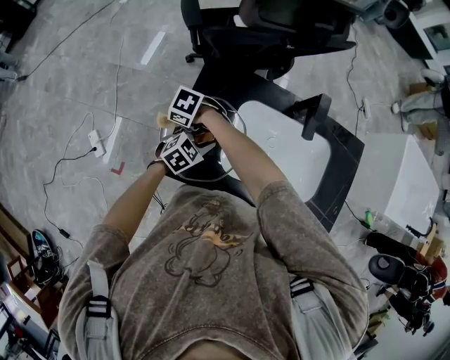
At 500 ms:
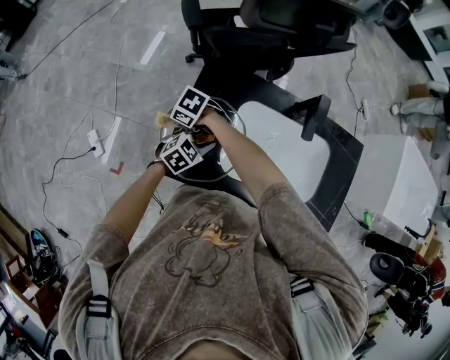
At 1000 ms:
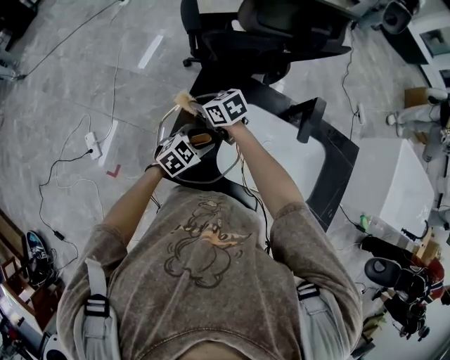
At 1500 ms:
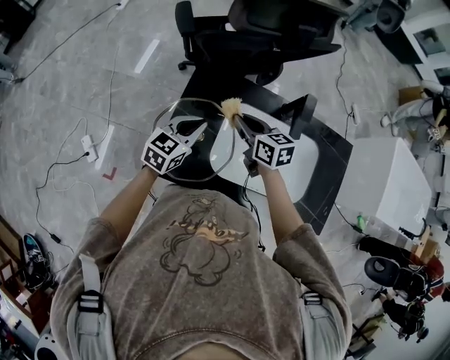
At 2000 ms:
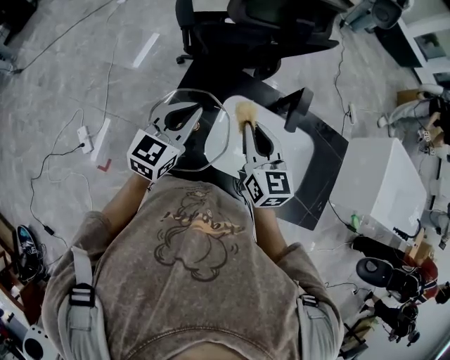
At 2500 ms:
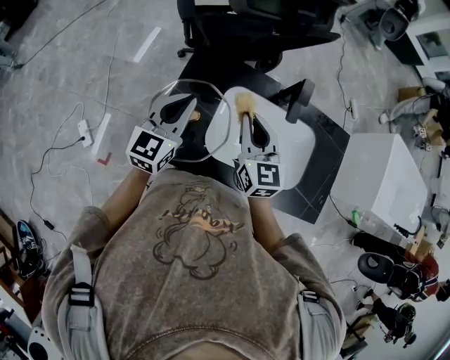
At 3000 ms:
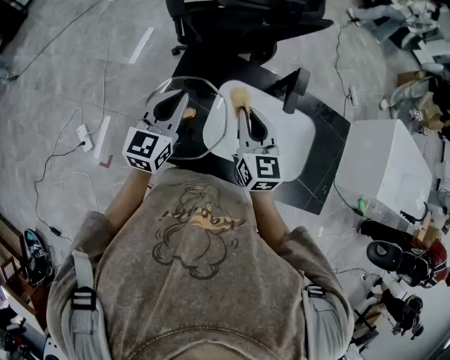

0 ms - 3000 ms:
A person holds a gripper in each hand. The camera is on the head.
0 ms - 1500 ms: The left gripper shifts roughly 10 cm upward, turns by about 30 degrees, and closes its fingers. Meanwhile the right gripper ends up about 25 cm from where it was, and turns by some 70 degrees.
1500 ms - 3000 ms: The right gripper goes roughly 10 cm upward and backward, and swivels approximately 30 degrees; the left gripper is displaced upward by roughly 10 cm, and swivels approximately 20 degrees.

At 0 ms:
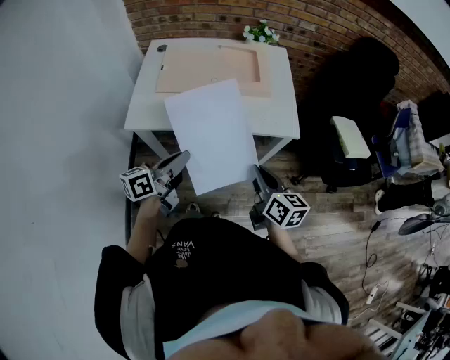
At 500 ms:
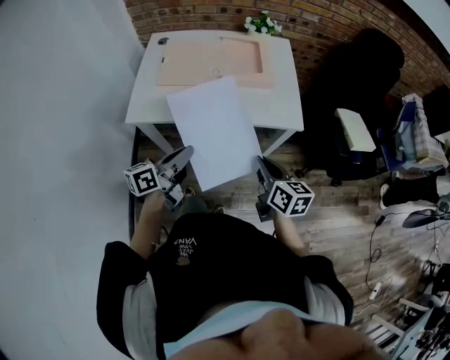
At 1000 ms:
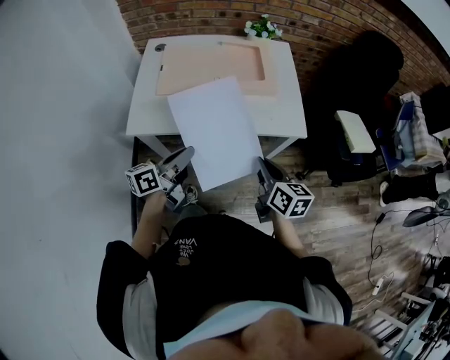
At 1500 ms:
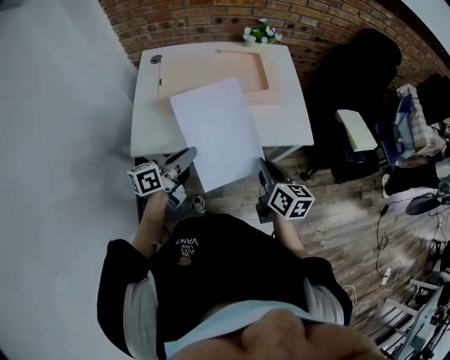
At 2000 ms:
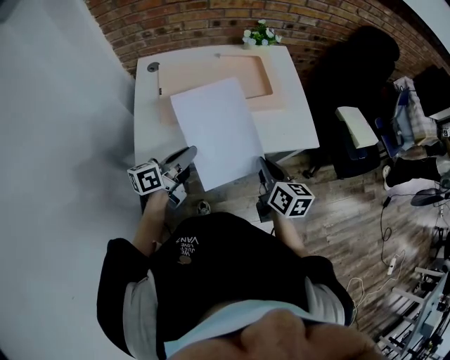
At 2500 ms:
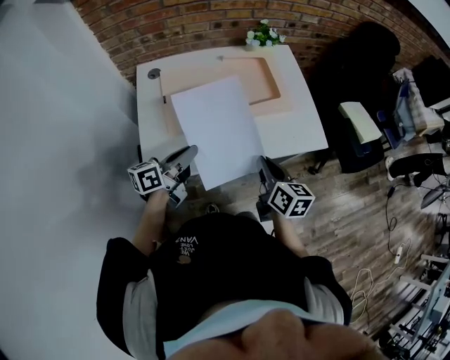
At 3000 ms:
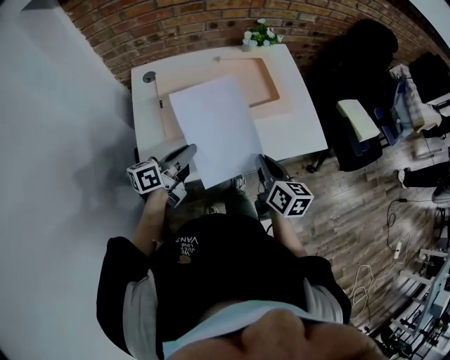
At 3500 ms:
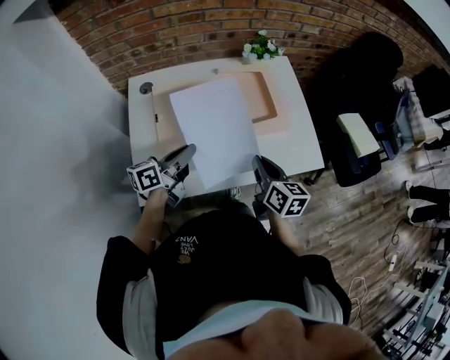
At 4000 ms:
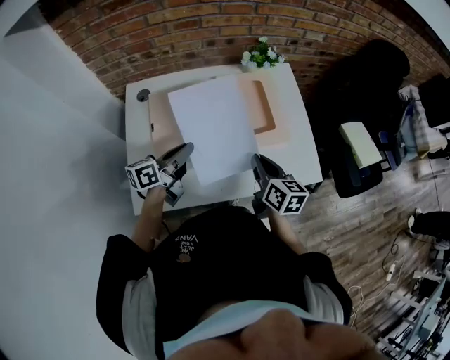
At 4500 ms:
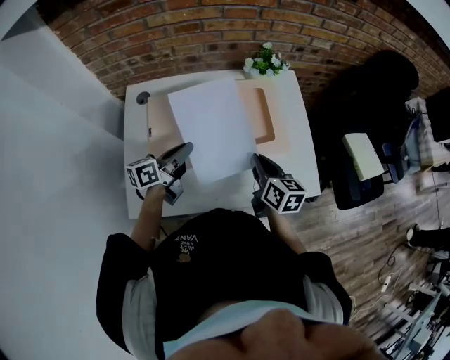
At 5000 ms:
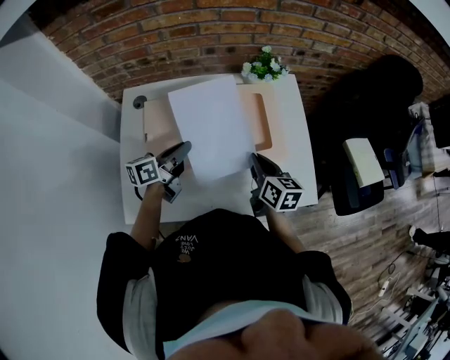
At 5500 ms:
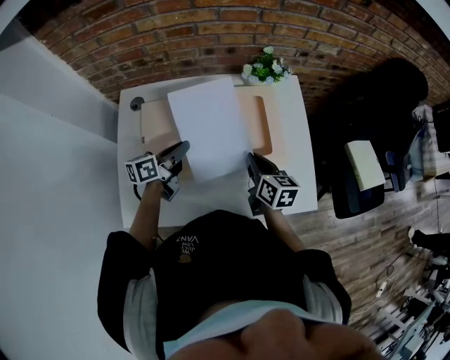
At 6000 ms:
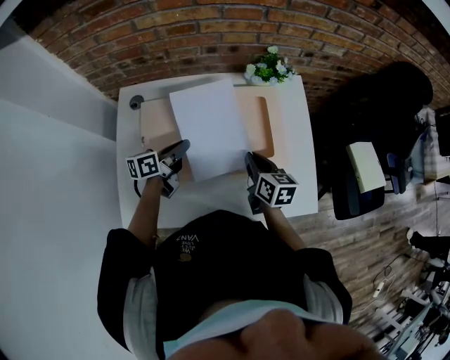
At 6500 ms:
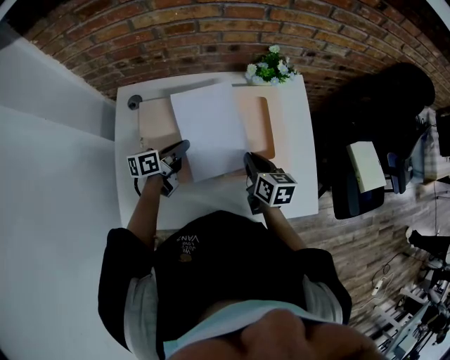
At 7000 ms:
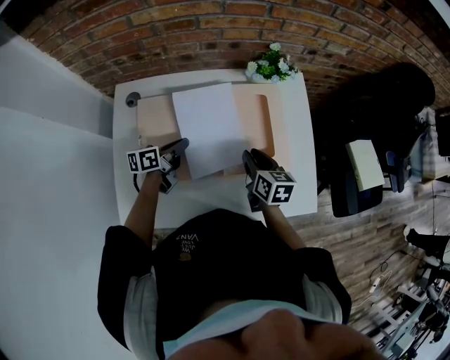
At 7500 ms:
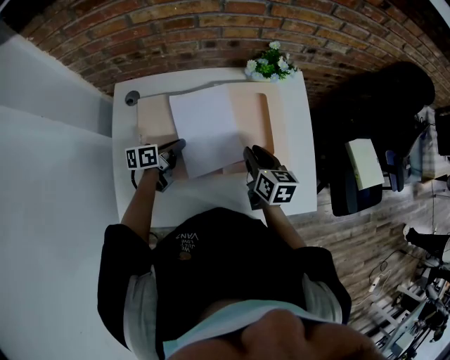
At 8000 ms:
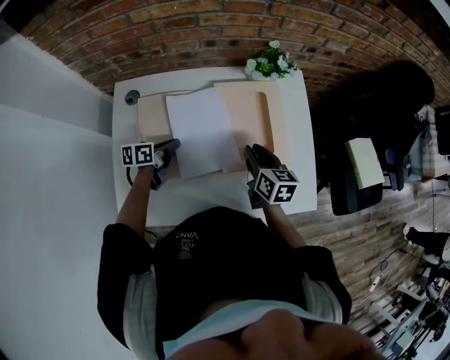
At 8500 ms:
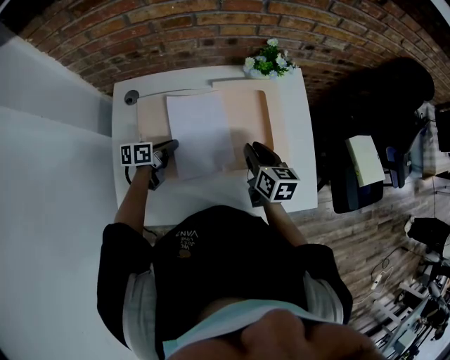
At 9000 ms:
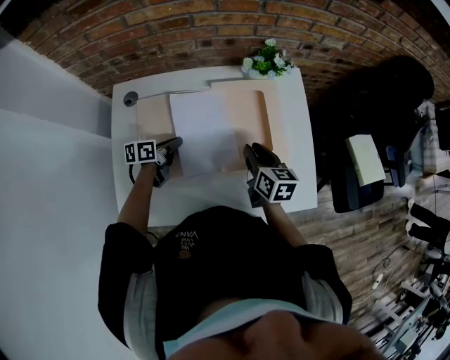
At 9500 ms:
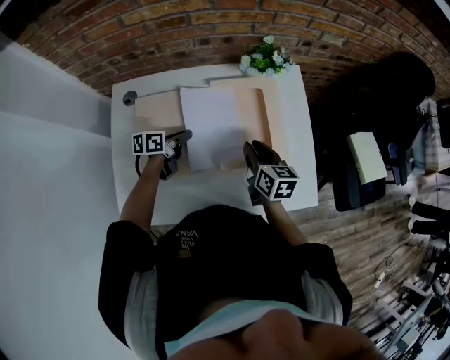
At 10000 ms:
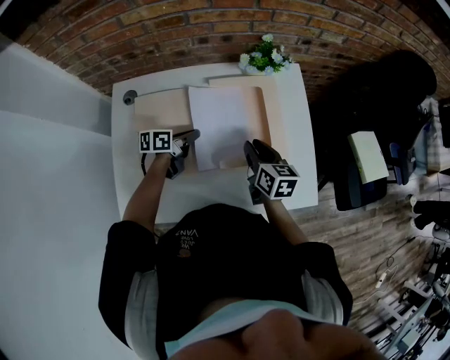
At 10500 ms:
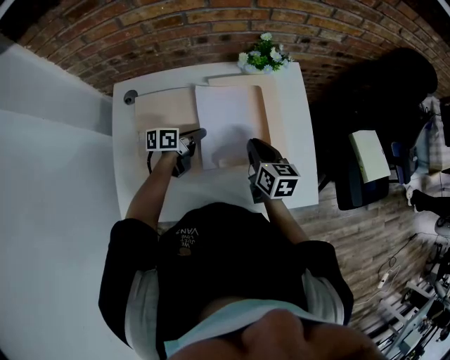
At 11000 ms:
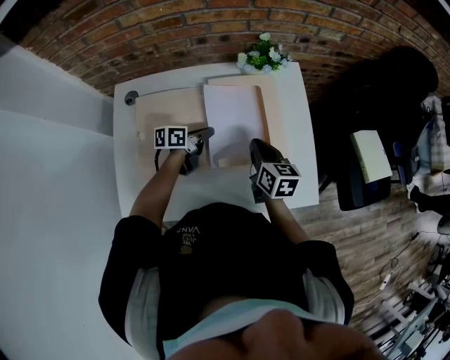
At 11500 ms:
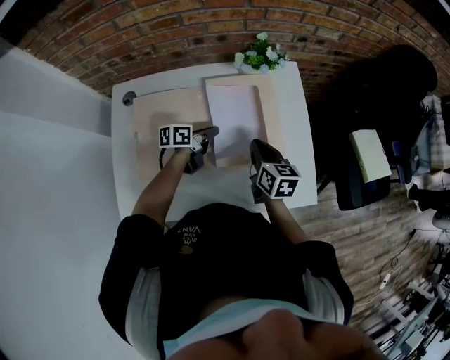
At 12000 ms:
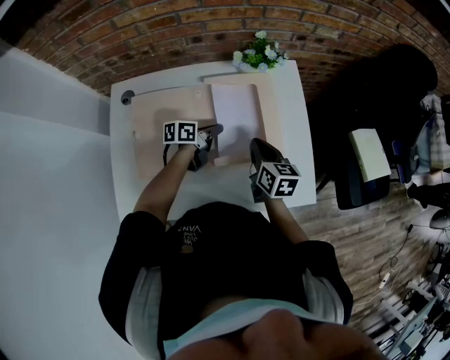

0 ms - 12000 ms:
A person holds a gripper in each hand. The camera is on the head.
0 ms - 2000 ms: Both grippers travel together forward and to the left, approximately 15 cm.
2000 ms - 4000 ms: Both grippers move forward, approximately 15 cm.
4000 ms - 6000 ms: Both grippers move forward and downward, some 15 cm.
6000 ms - 8000 ms: The left gripper is displaced downward by some 5 cm. The right gripper opens its fingers.
8000 ms - 10000 ms: The left gripper is displaced to the right by about 10 cm.
10000 ms - 12000 ms: The left gripper moves to the right, about 10 cm; the right gripper closes.

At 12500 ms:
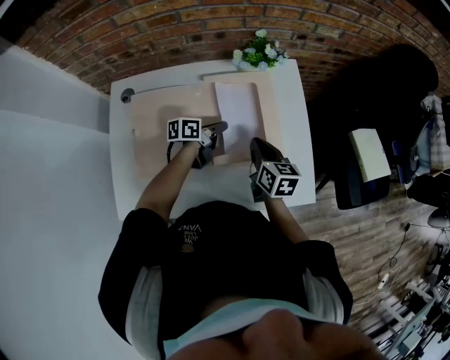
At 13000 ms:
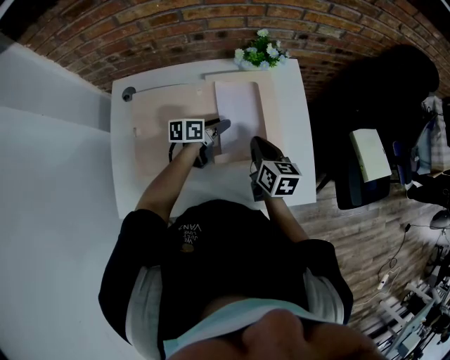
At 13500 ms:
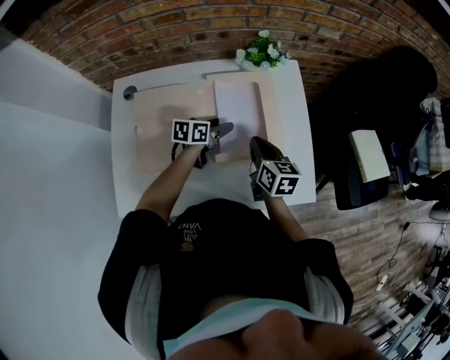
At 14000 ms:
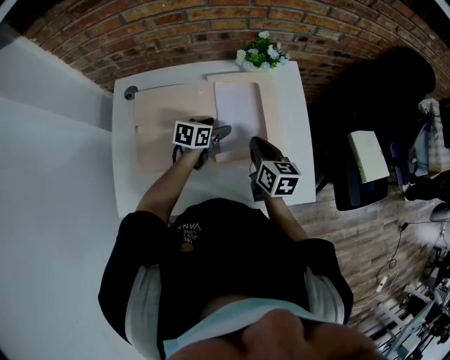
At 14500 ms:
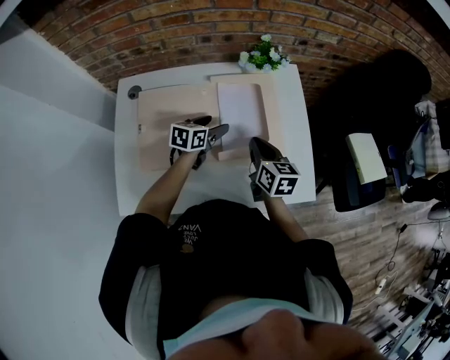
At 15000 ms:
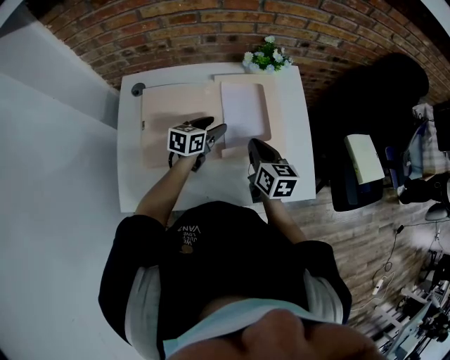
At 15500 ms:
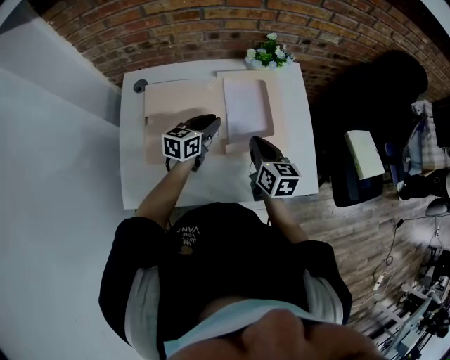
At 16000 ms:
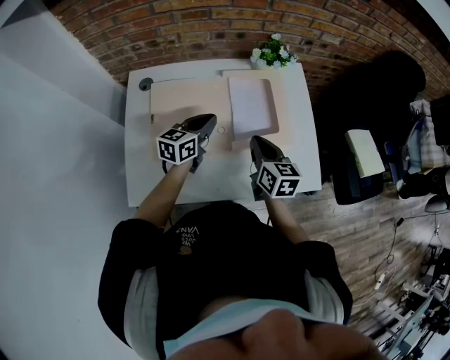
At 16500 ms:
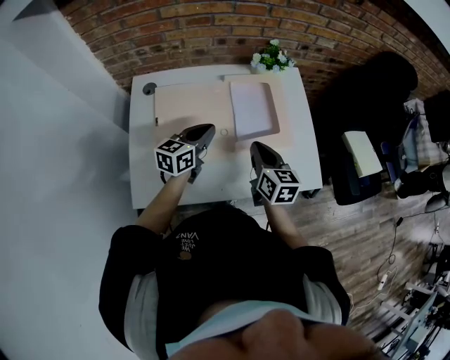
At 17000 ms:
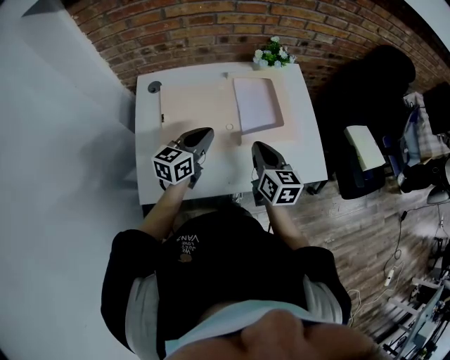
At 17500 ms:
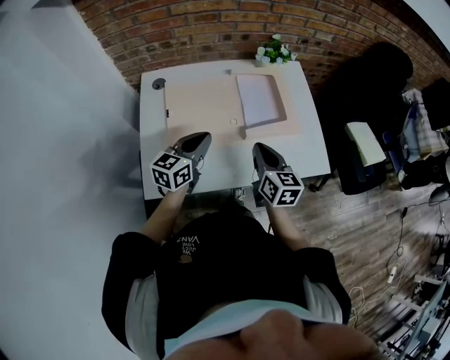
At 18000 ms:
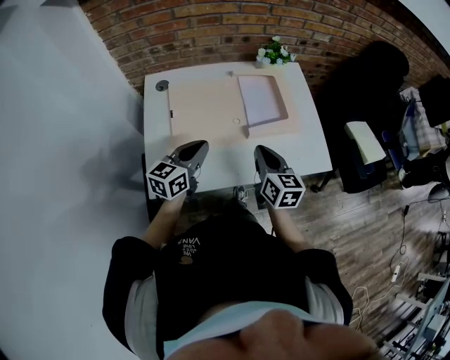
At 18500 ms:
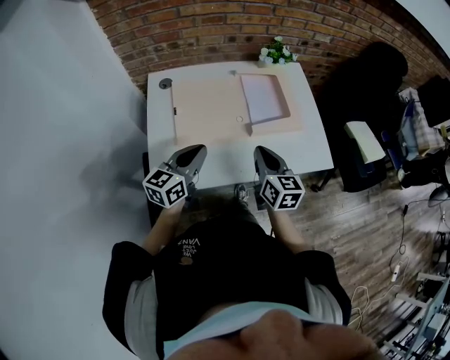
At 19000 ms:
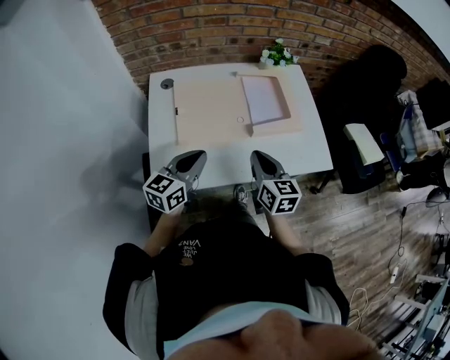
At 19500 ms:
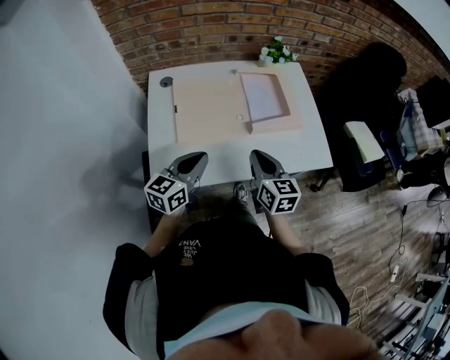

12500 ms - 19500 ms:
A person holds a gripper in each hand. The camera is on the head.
12500 ms - 14500 ms: The left gripper moves some 5 cm, turns by roughly 30 degrees, and opens up.
14500 ms - 16000 ms: The left gripper goes approximately 10 cm upward, backward and to the left, and closes its fingers. Meanwhile the right gripper moves some 5 cm.
16000 ms - 17500 ms: The grippers both shift backward by some 10 cm.
17500 ms - 19500 ms: The right gripper is displaced backward by roughly 5 cm, while the left gripper shifts about 10 cm backward.

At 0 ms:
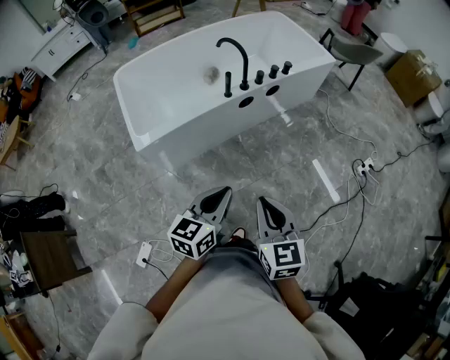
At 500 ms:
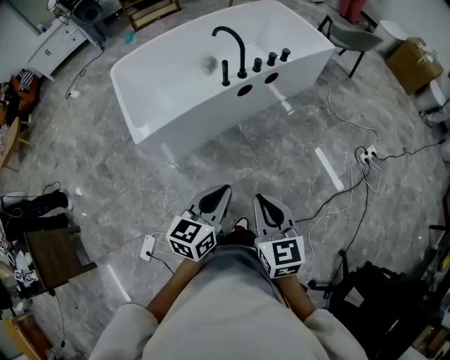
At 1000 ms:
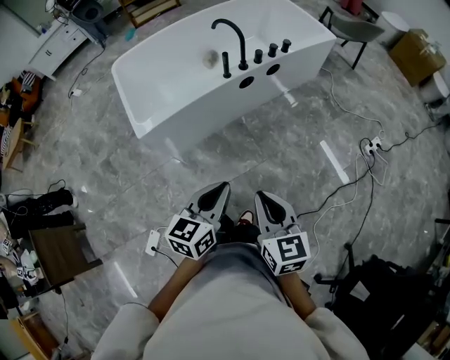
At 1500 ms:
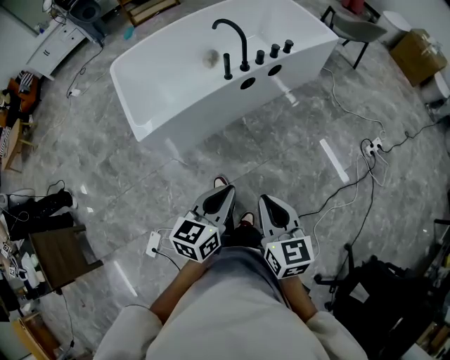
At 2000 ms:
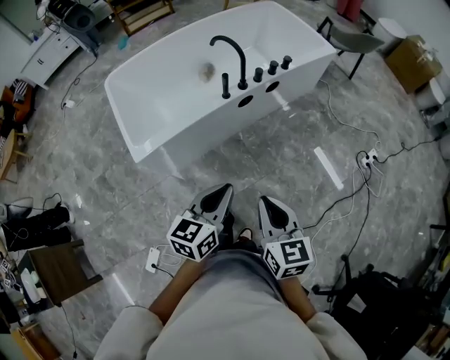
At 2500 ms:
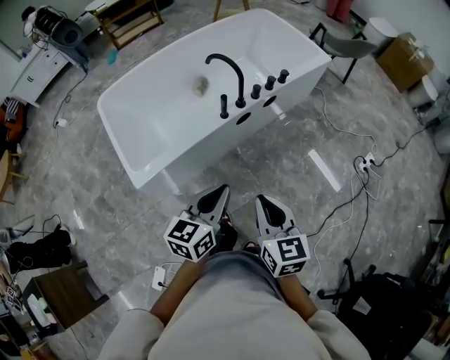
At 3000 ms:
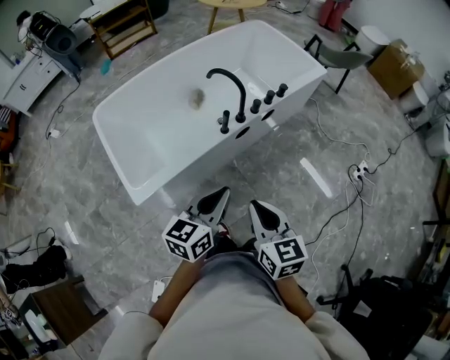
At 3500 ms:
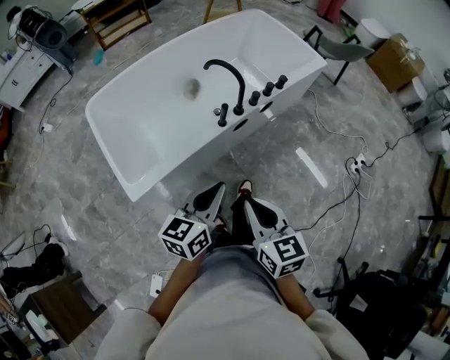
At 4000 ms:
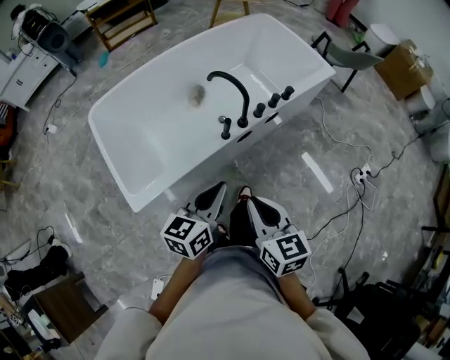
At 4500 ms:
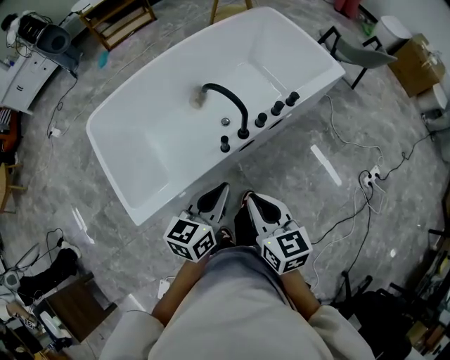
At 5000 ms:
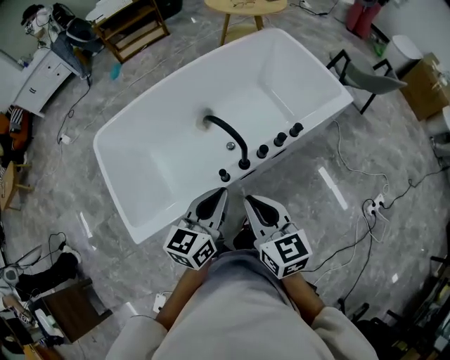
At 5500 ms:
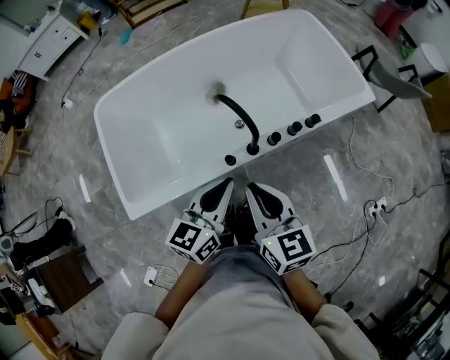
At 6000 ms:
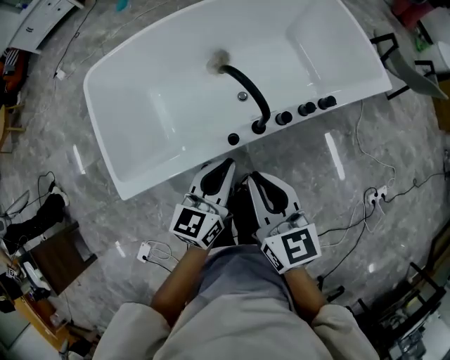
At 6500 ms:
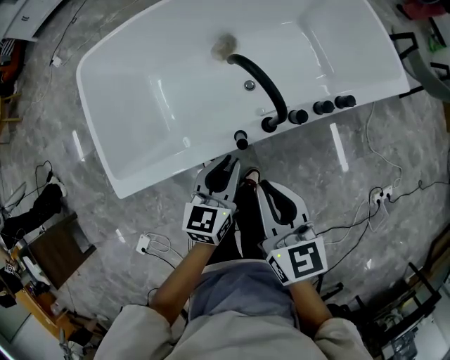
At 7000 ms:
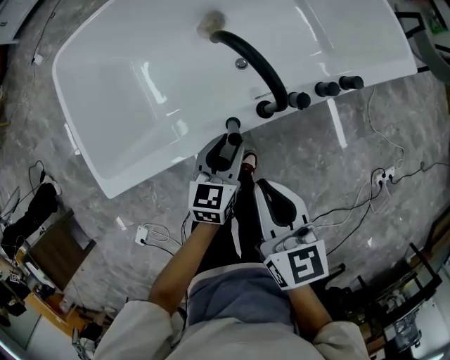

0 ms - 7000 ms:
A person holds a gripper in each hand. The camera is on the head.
0 ms - 2000 ms: The grippers both shift forward by about 5 cm.
2000 ms - 3500 ms: Both grippers travel together forward and to the left, some 20 cm.
3500 ms - 5000 ms: The grippers both shift forward by some 25 cm.
5000 ms - 7000 ms: The left gripper moves downward, approximately 30 cm, rotates some 20 degrees, and opens, while the right gripper is displaced downward by roughly 15 cm.
